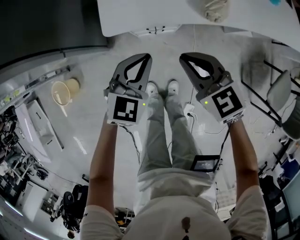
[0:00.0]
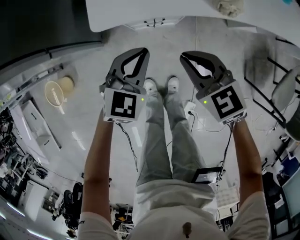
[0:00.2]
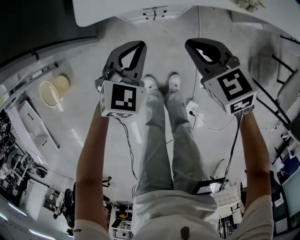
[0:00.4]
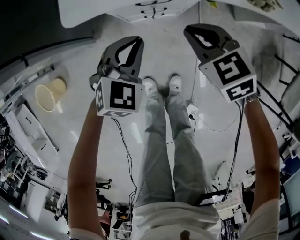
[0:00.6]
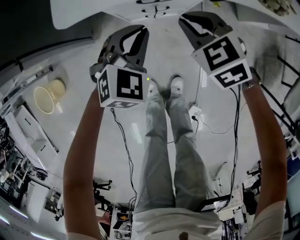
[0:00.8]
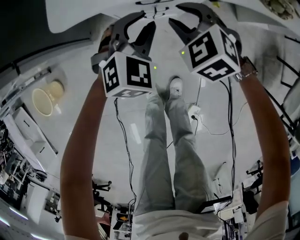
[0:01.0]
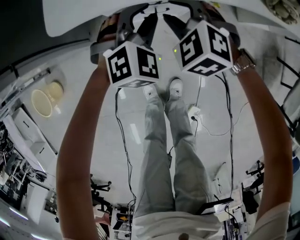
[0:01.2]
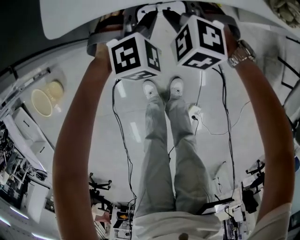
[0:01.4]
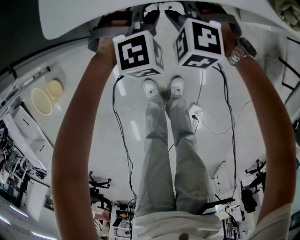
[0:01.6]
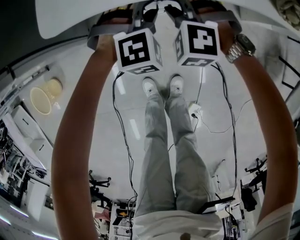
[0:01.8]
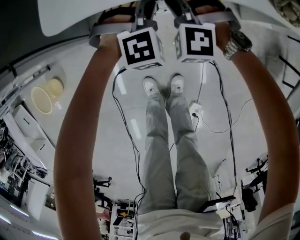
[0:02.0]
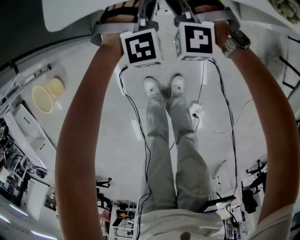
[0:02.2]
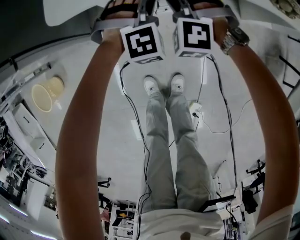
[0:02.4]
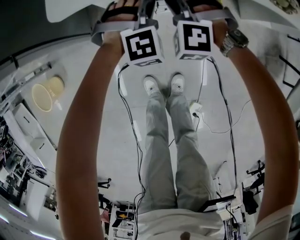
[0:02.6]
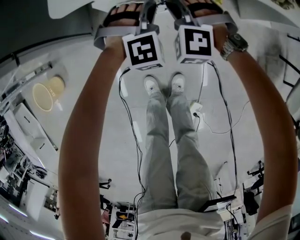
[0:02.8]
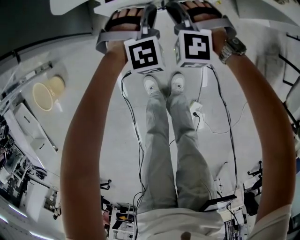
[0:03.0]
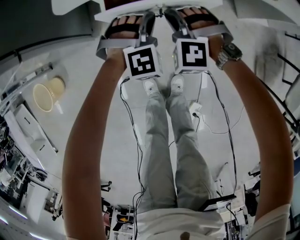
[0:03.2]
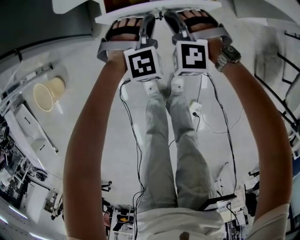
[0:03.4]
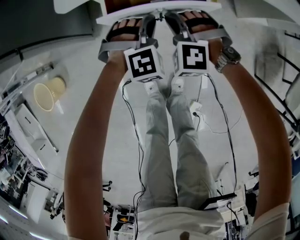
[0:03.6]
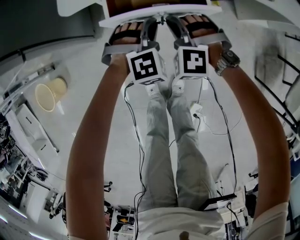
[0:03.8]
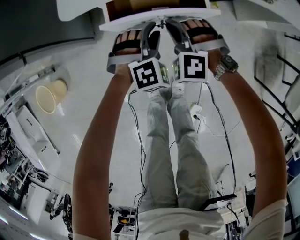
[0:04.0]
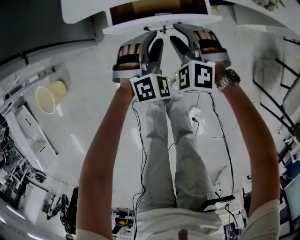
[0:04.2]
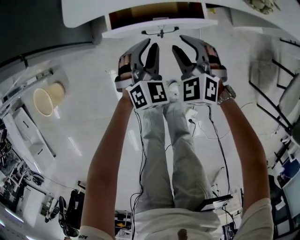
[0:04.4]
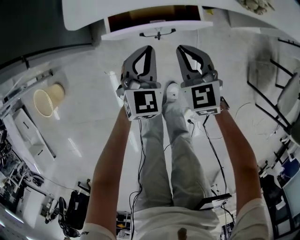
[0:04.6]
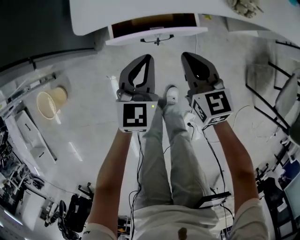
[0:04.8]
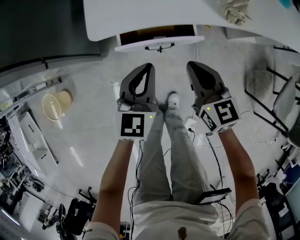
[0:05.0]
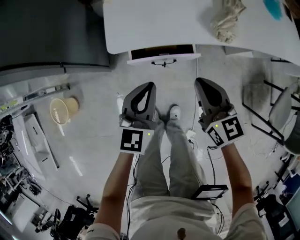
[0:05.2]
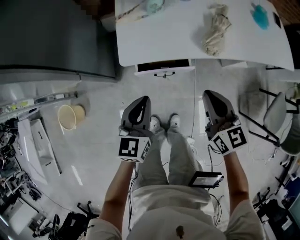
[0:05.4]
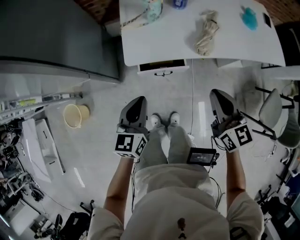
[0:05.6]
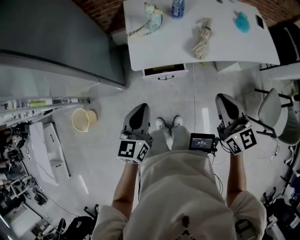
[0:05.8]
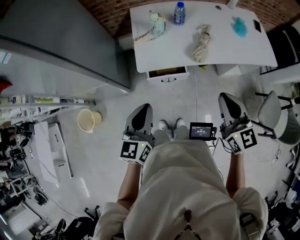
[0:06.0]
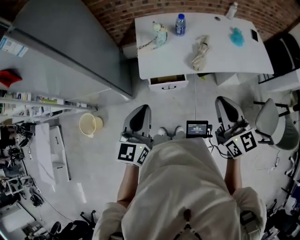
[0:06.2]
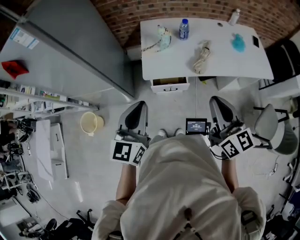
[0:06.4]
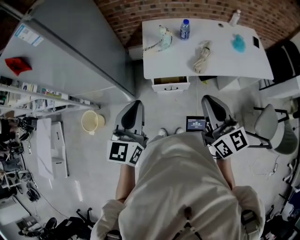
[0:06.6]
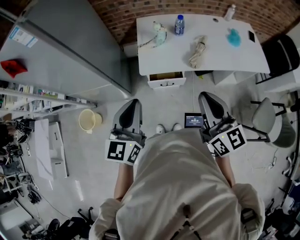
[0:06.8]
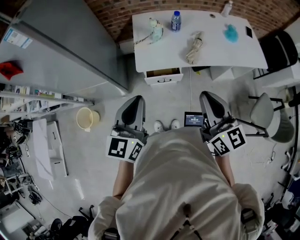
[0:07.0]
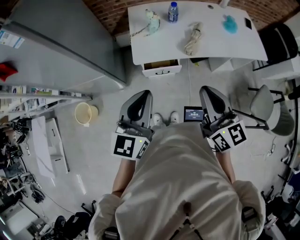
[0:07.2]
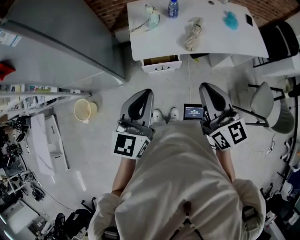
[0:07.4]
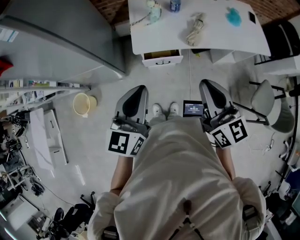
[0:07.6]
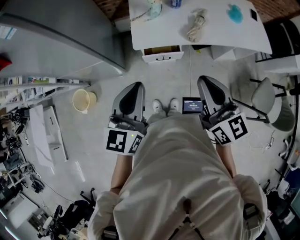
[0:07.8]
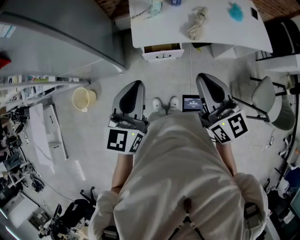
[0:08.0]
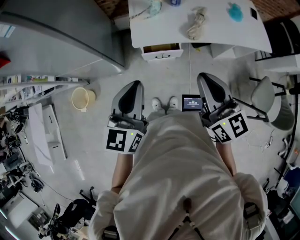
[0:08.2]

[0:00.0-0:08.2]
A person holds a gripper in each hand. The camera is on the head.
0:00.0 to 0:01.6: The grippers both shift downward and forward by approximately 30 cm. The right gripper twists roughly 50 degrees counterclockwise, seen from behind, and opens its fingers, while the left gripper twists roughly 40 degrees clockwise, seen from behind, and opens up.
0:01.6 to 0:03.2: Both grippers travel together backward, about 5 cm. The left gripper closes its fingers, while the right gripper closes.
0:03.2 to 0:05.0: The right gripper is displaced upward and backward by roughly 20 cm, rotates around the line of its fingers by approximately 80 degrees, clockwise from behind, and opens and closes again. The left gripper shifts about 20 cm upward, rotates around the line of its fingers by some 70 degrees, counterclockwise from behind, and opens and closes again.
0:05.0 to 0:06.6: The grippers both shift upward by approximately 50 cm. The right gripper changes its angle by some 30 degrees.

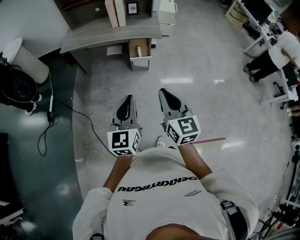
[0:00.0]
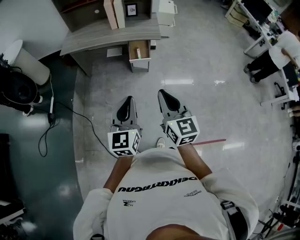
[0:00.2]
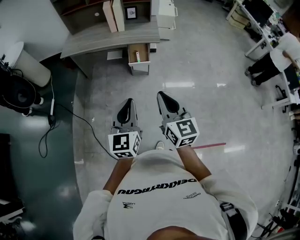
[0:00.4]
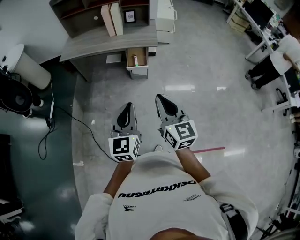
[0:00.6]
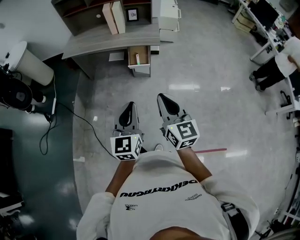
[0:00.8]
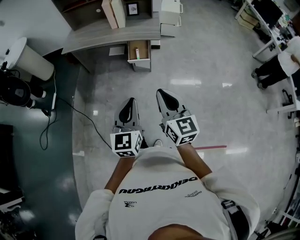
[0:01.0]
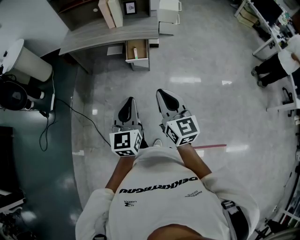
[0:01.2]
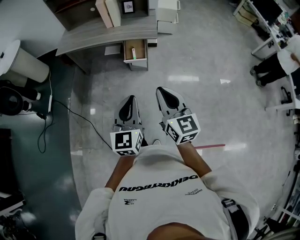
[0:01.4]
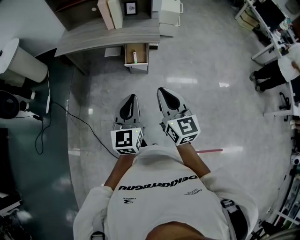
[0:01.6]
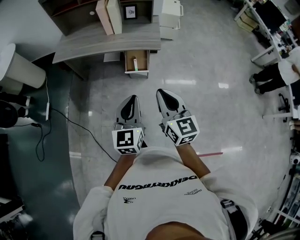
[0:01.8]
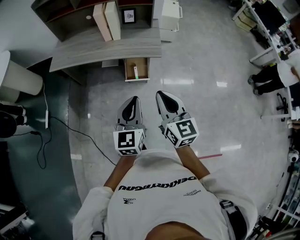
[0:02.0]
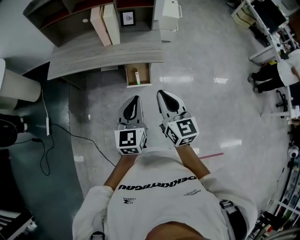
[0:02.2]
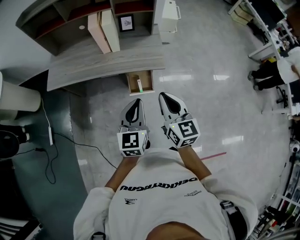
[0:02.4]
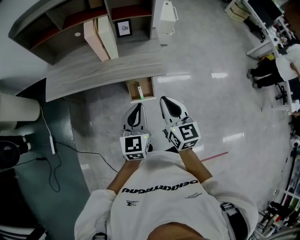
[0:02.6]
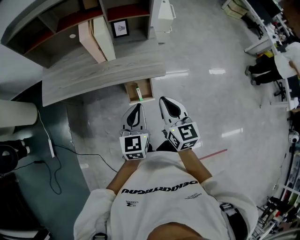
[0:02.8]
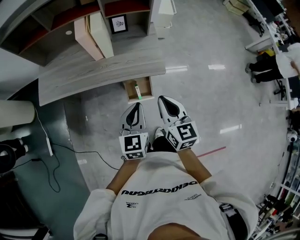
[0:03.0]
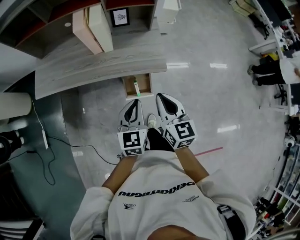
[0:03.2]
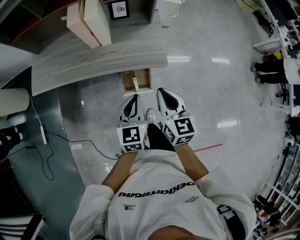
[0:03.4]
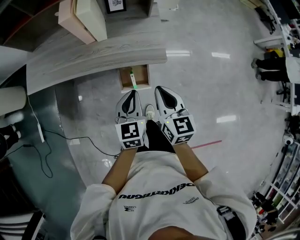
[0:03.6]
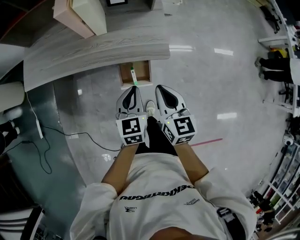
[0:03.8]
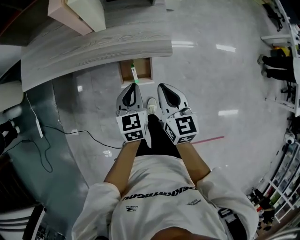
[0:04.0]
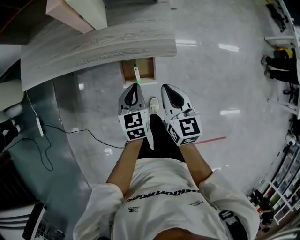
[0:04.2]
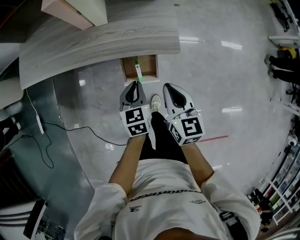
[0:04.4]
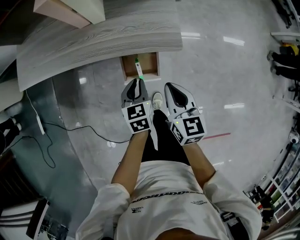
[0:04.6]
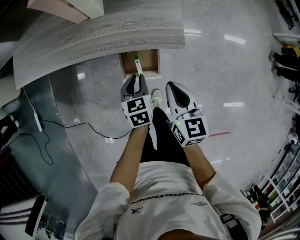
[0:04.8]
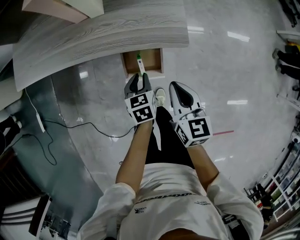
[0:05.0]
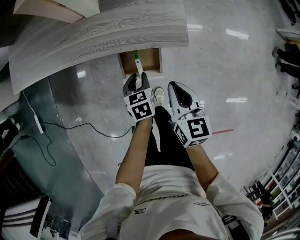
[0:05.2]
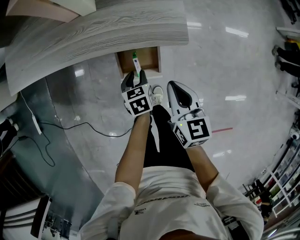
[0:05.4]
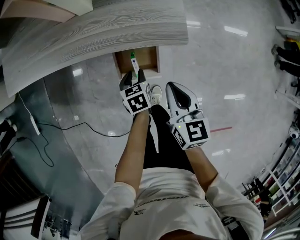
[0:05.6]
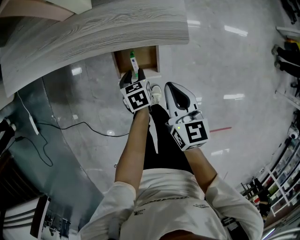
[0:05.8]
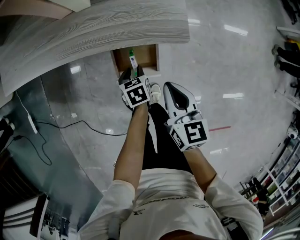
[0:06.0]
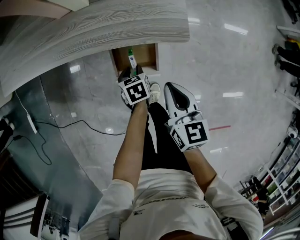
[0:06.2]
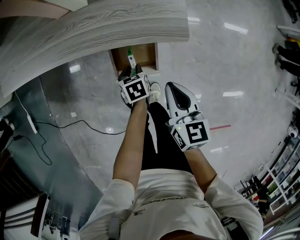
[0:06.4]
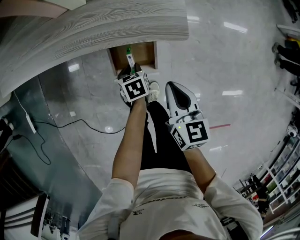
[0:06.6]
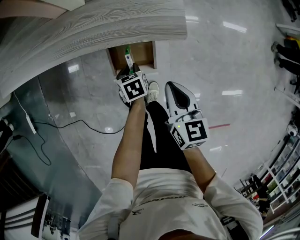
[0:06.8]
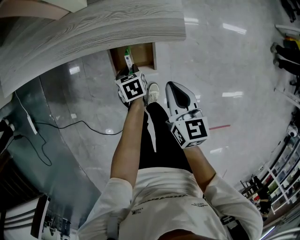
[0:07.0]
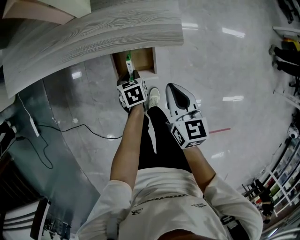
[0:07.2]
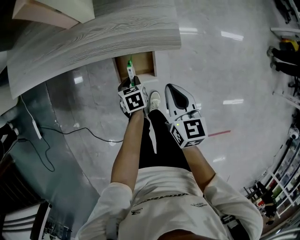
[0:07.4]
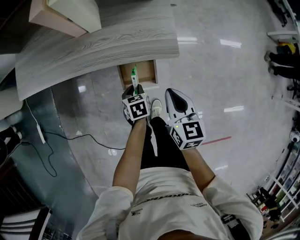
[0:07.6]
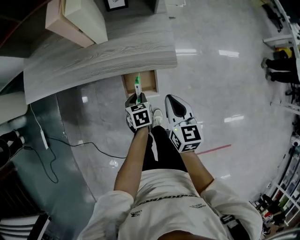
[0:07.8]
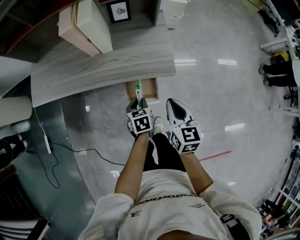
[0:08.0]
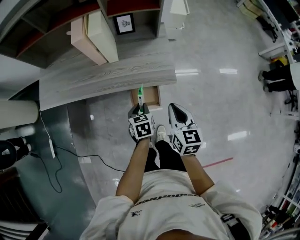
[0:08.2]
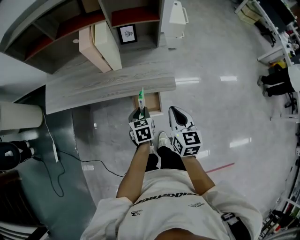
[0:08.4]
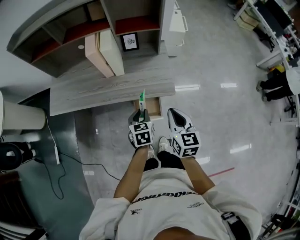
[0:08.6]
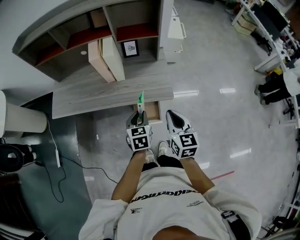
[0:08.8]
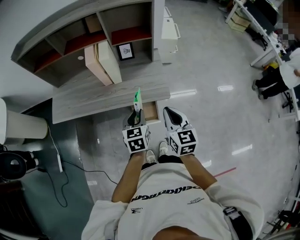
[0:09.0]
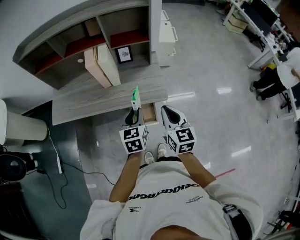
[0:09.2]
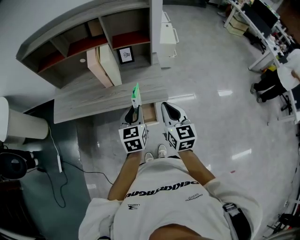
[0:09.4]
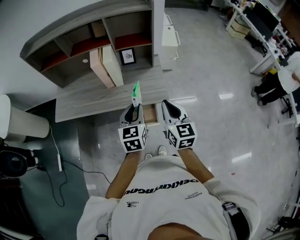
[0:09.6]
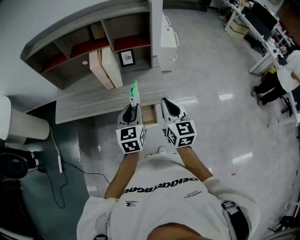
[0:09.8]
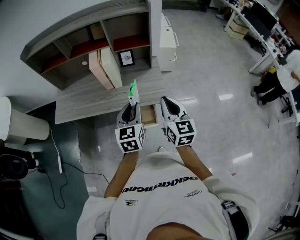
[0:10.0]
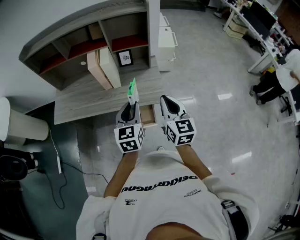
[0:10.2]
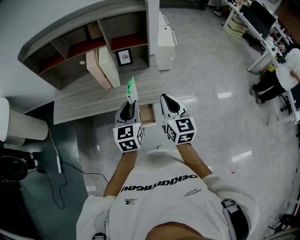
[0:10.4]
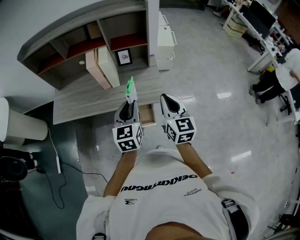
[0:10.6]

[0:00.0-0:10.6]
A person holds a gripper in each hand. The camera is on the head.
0:00.0 to 0:01.6: The right gripper travels forward and to the right by some 15 cm. Meanwhile the left gripper heads to the right and forward, covering roughly 15 cm.
0:01.6 to 0:03.0: The two grippers go some 40 cm forward.
0:03.0 to 0:04.6: Both grippers travel together downward, roughly 25 cm. The left gripper rotates some 30 degrees.
0:04.6 to 0:06.0: The right gripper travels downward by roughly 10 cm, while the left gripper is displaced downward by approximately 20 cm, and opens its fingers.
0:06.0 to 0:07.6: The two grippers go some 5 cm upward.
0:07.6 to 0:09.0: The right gripper is displaced upward by about 25 cm. Meanwhile the left gripper travels upward by about 35 cm, and turns by about 30 degrees.
0:09.0 to 0:10.6: The left gripper is displaced upward by about 10 cm. The right gripper heads upward, covering some 5 cm.

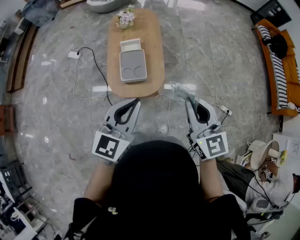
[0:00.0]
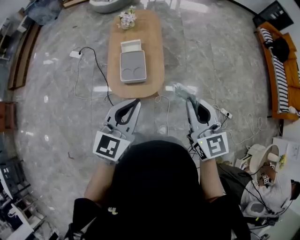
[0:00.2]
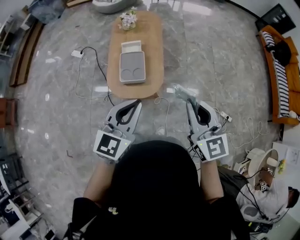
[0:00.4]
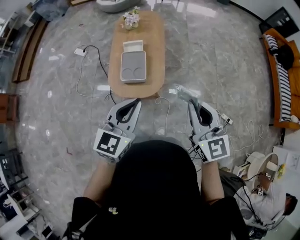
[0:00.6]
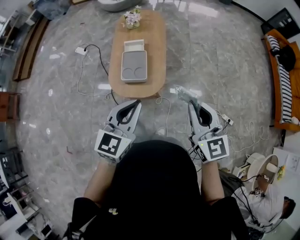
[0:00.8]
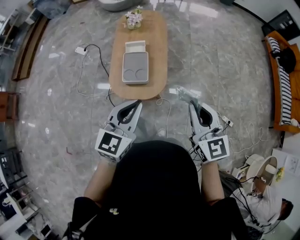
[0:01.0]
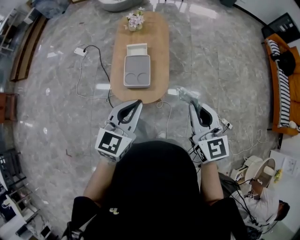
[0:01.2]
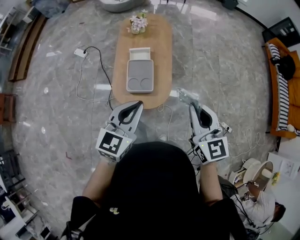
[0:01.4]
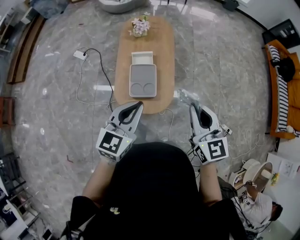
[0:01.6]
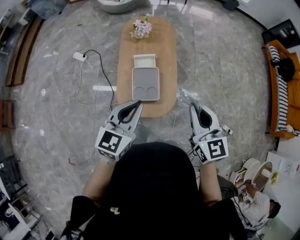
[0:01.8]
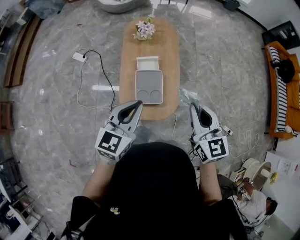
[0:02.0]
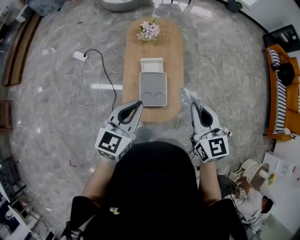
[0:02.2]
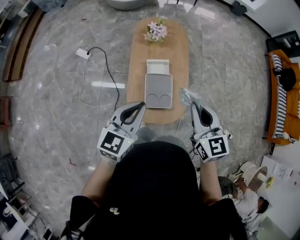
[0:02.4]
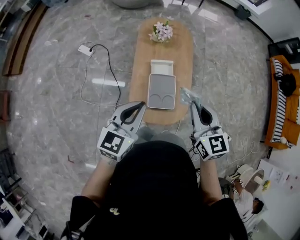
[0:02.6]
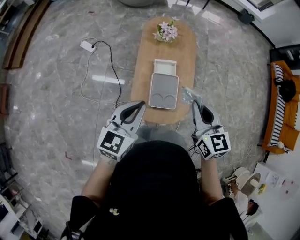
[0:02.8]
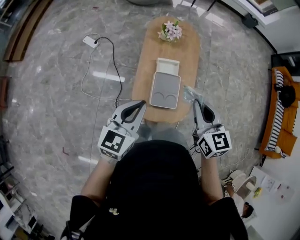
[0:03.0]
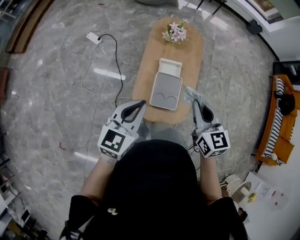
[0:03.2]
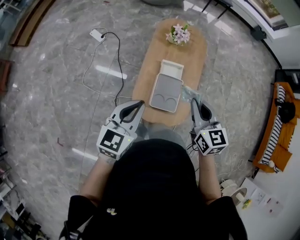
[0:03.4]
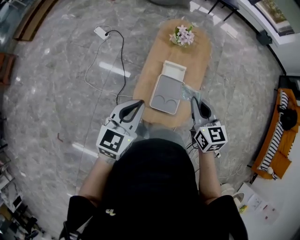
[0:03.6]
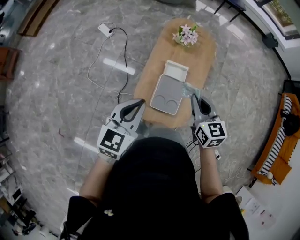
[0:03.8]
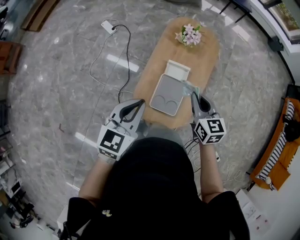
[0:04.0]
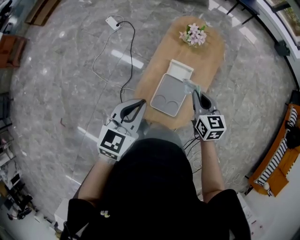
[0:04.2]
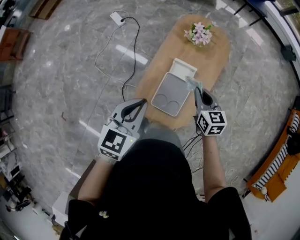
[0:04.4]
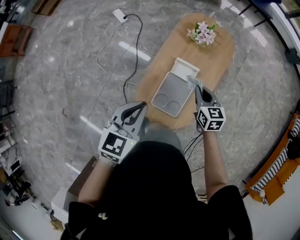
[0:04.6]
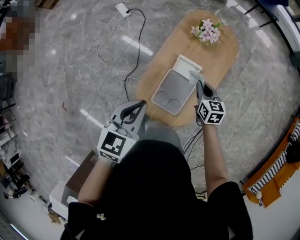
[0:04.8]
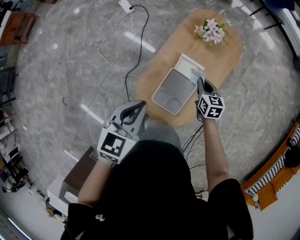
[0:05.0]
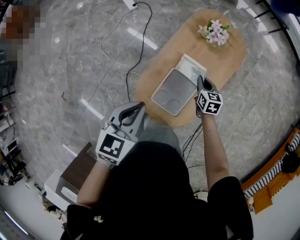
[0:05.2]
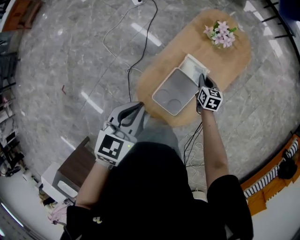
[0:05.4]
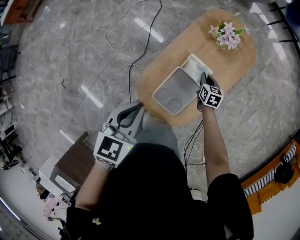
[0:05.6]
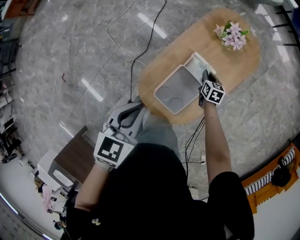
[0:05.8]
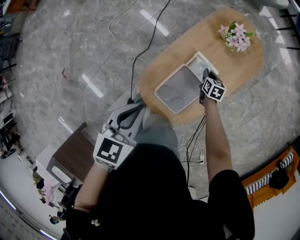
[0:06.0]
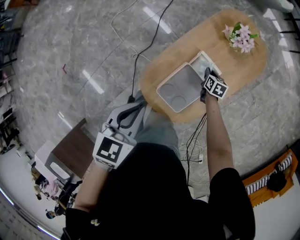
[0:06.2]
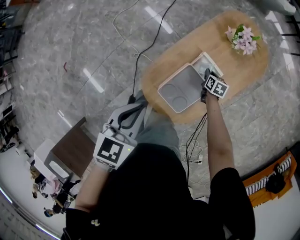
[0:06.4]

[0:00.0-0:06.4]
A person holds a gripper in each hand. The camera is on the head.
0:00.0 to 0:01.6: The left gripper travels forward and to the left by approximately 15 cm. Meanwhile the right gripper goes approximately 15 cm forward.
0:01.6 to 0:03.2: The right gripper moves to the left and forward, roughly 25 cm. The left gripper moves to the left, approximately 20 cm.
0:03.2 to 0:04.8: The left gripper moves forward, downward and to the right, approximately 10 cm, and swivels some 20 degrees. The right gripper is displaced downward and forward by approximately 30 cm, and swivels some 20 degrees.
0:04.8 to 0:06.4: The right gripper travels downward by some 25 cm, and rotates roughly 20 degrees. Meanwhile the left gripper travels downward by approximately 5 cm.
